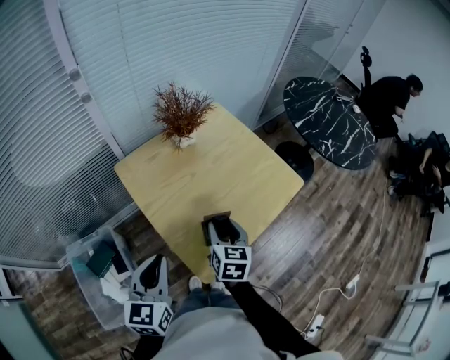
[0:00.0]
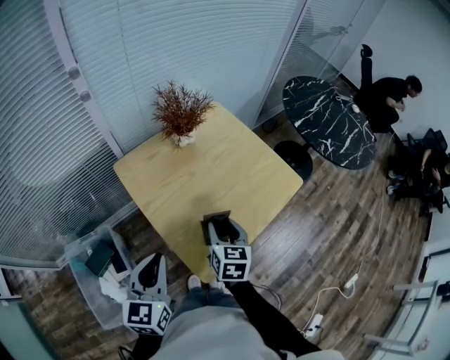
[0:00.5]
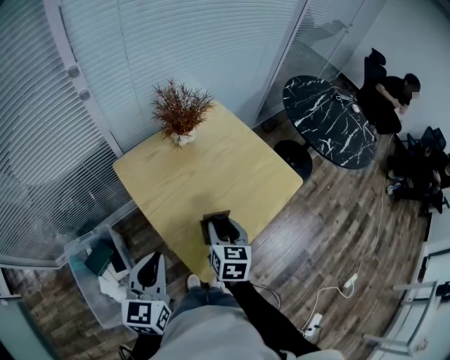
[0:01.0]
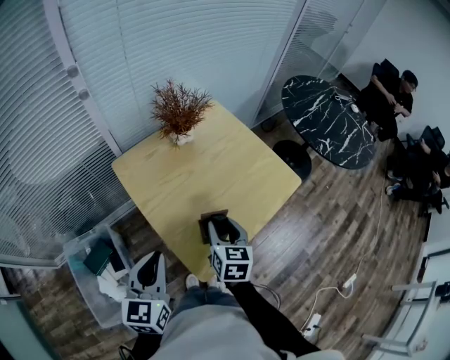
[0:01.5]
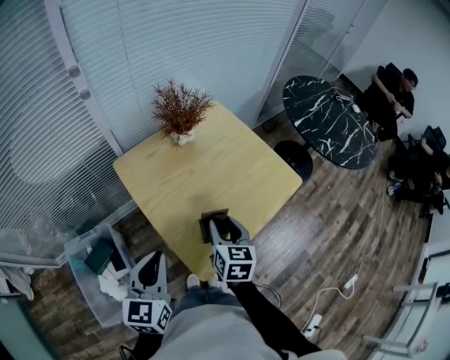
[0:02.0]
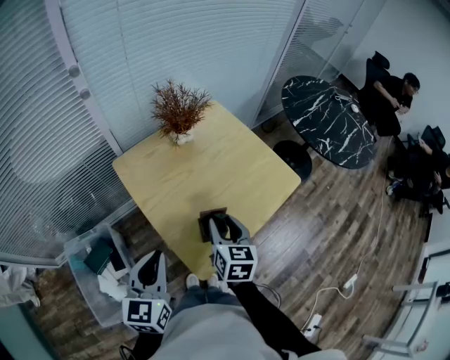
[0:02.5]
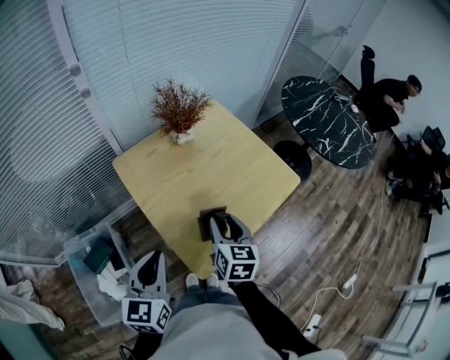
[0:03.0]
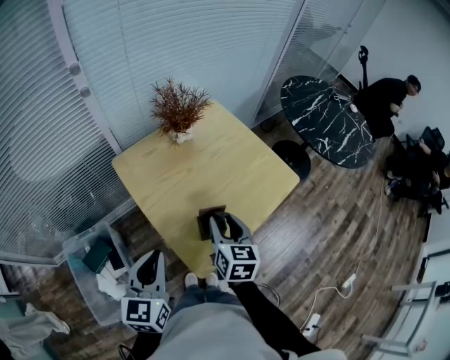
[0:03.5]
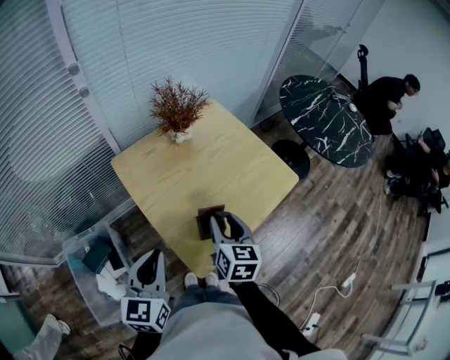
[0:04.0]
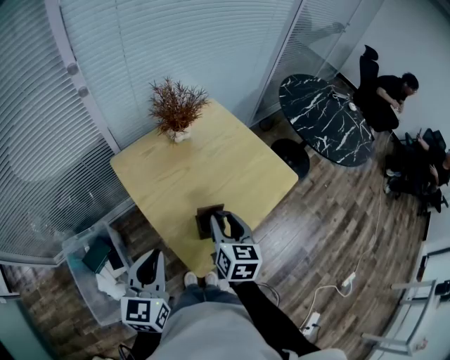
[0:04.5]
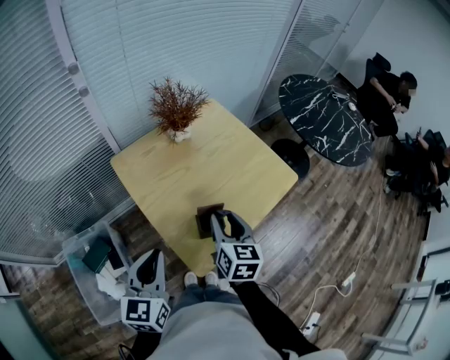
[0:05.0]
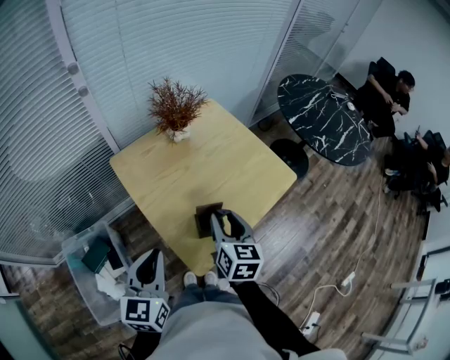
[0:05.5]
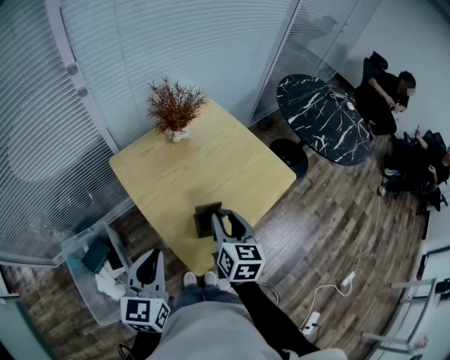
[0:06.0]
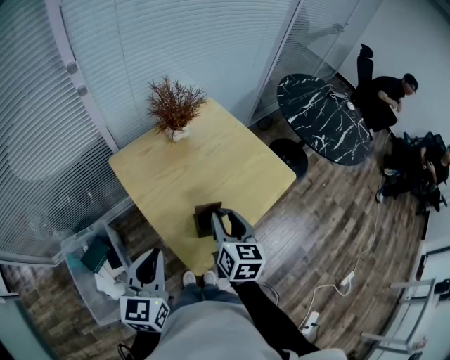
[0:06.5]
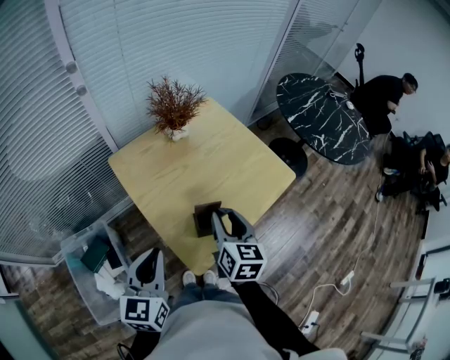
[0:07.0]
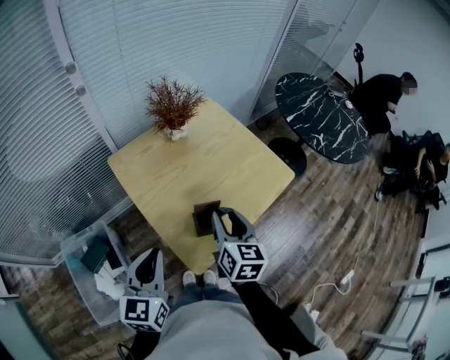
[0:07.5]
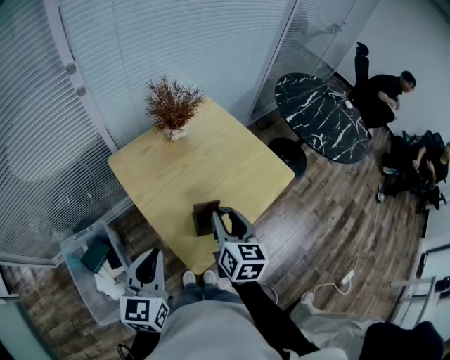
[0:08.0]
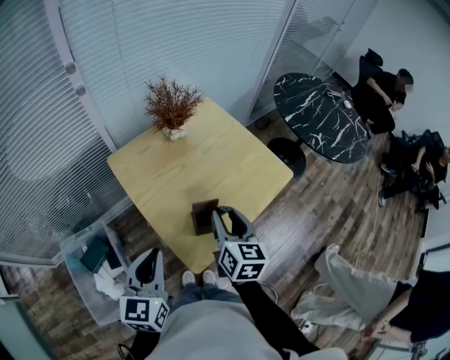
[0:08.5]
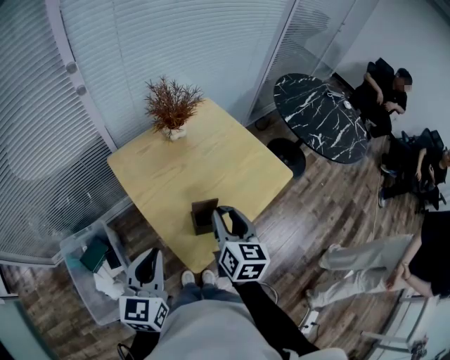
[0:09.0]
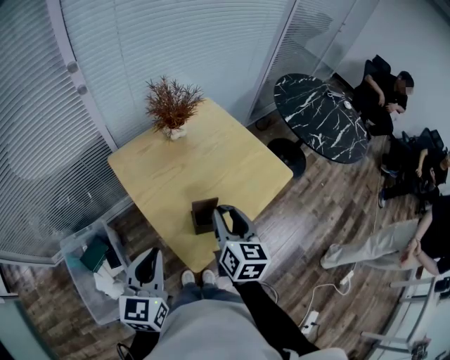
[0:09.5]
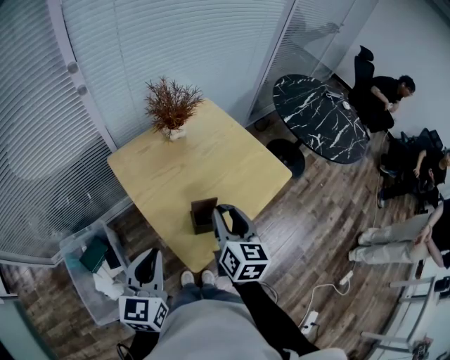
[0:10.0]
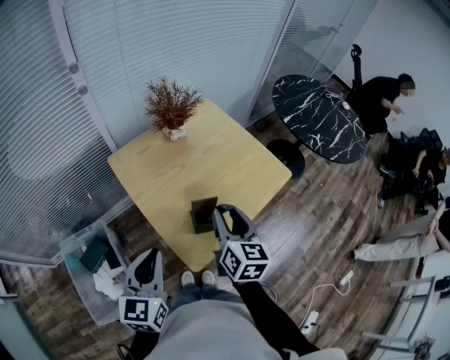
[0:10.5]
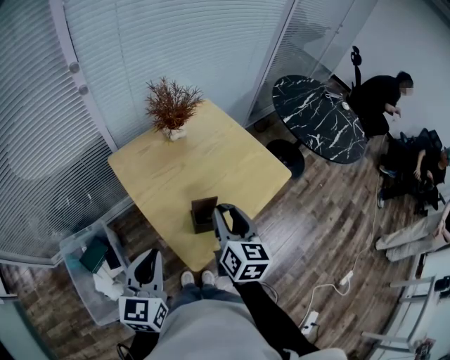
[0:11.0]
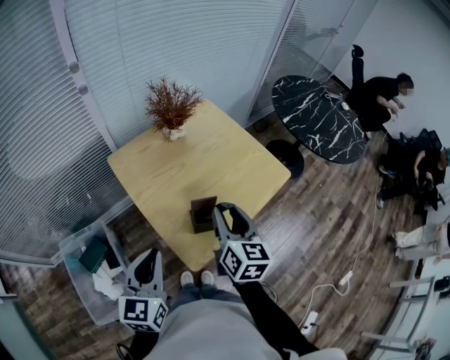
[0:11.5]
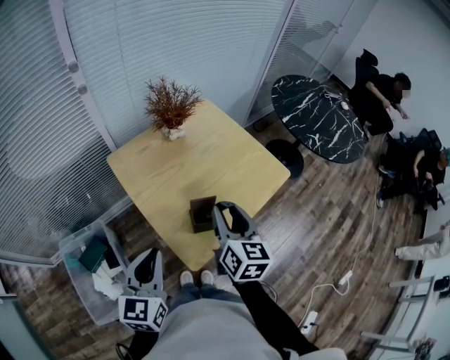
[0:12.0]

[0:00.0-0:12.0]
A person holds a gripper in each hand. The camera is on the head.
0:00.0 to 0:04.0: The grippers stay close to where they were, moving slightly.
0:04.0 to 0:06.0: The grippers move only a little.
0:06.0 to 0:08.0: The two grippers keep their place.
0:08.0 to 0:12.0: The grippers stay close to where they were, moving slightly.

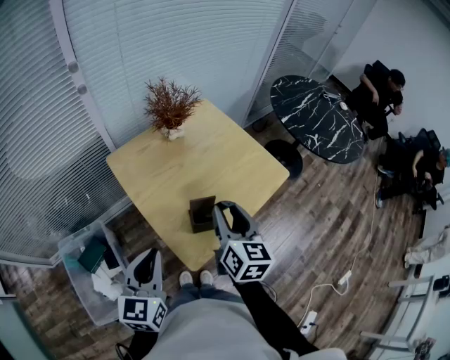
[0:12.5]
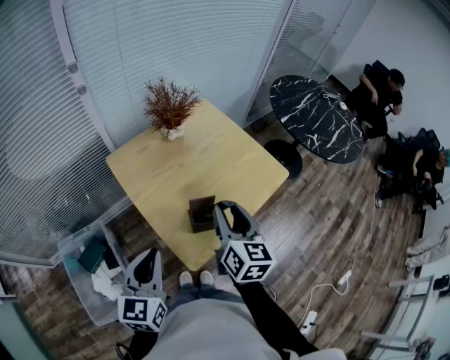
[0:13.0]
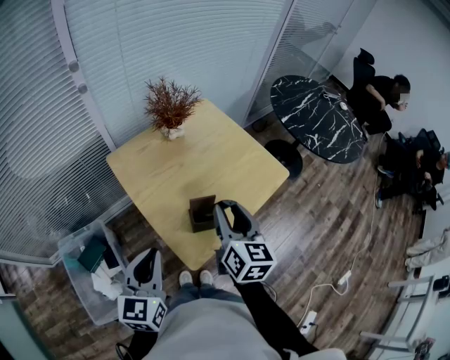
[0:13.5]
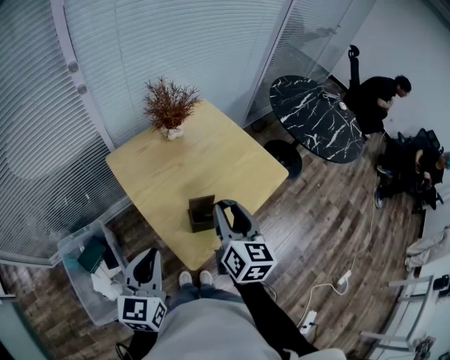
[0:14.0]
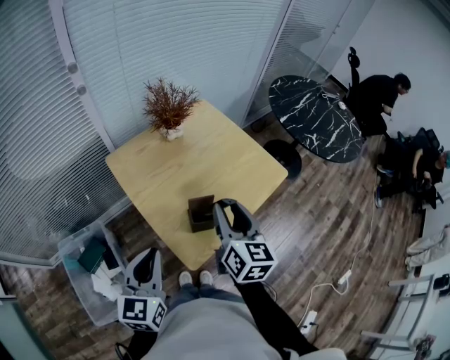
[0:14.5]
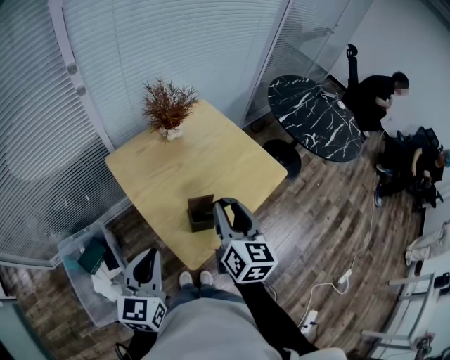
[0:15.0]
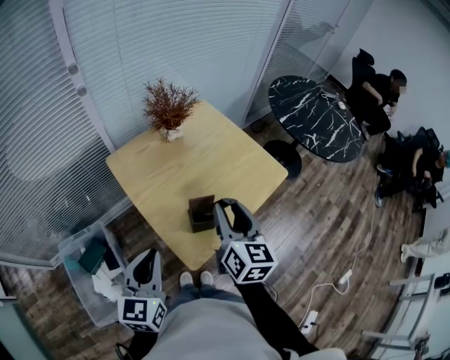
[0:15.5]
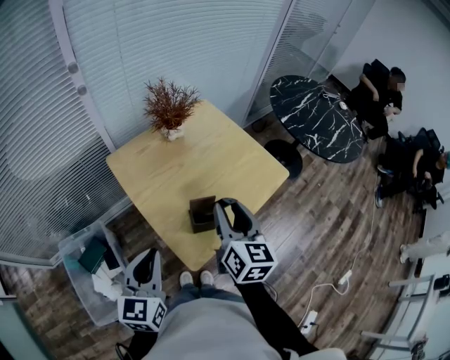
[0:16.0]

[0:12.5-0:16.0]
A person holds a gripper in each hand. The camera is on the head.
0:12.5 to 0:14.5: There are only small adjustments of the grippers.
0:14.5 to 0:16.0: Both grippers stay put.

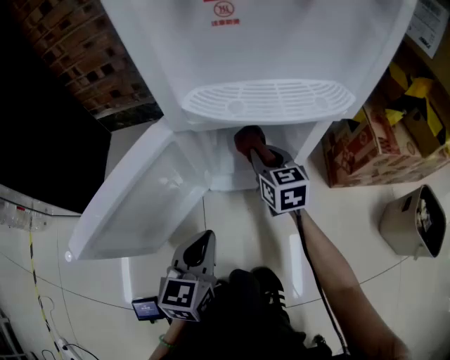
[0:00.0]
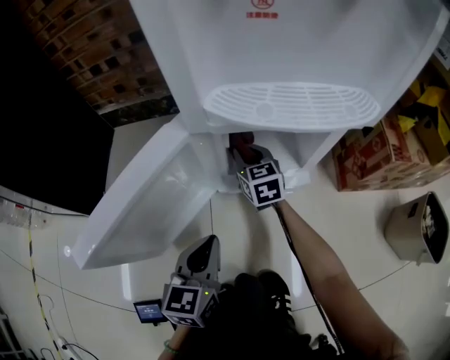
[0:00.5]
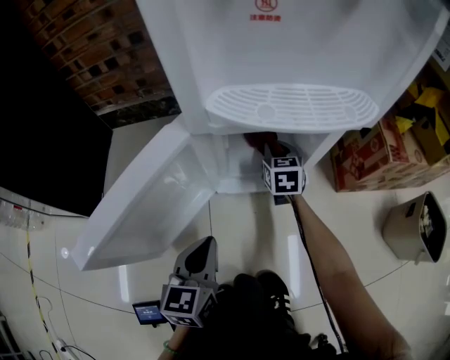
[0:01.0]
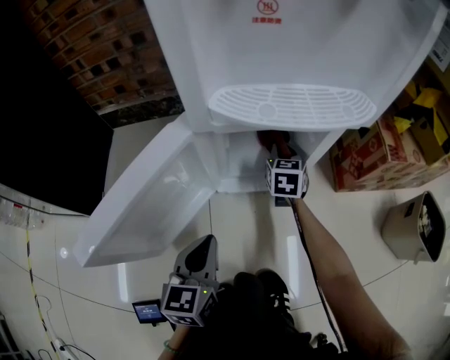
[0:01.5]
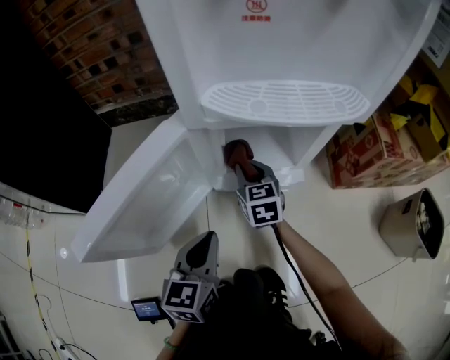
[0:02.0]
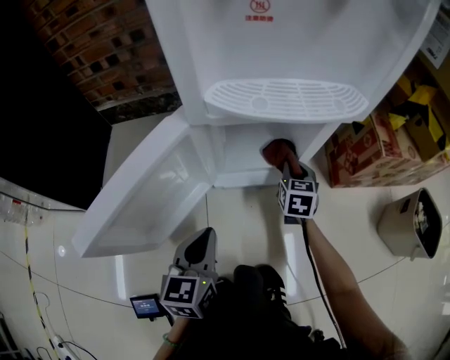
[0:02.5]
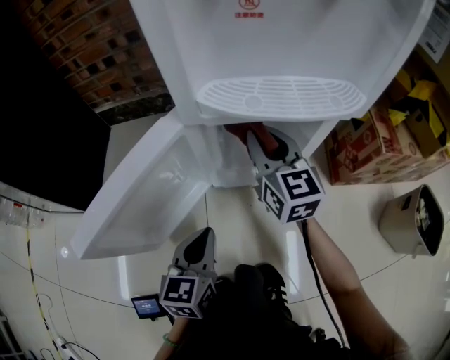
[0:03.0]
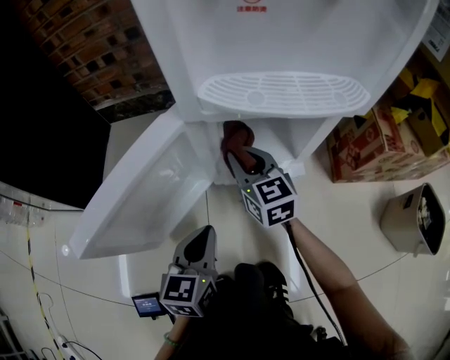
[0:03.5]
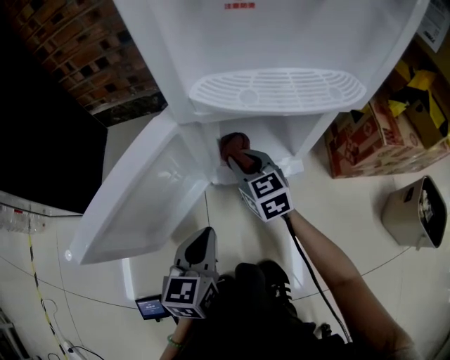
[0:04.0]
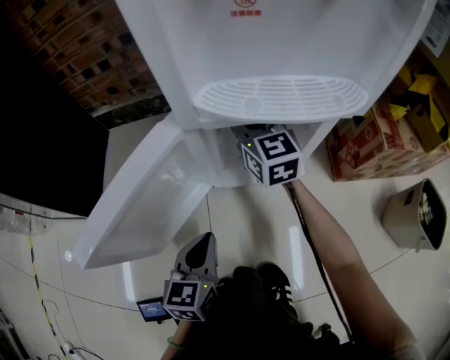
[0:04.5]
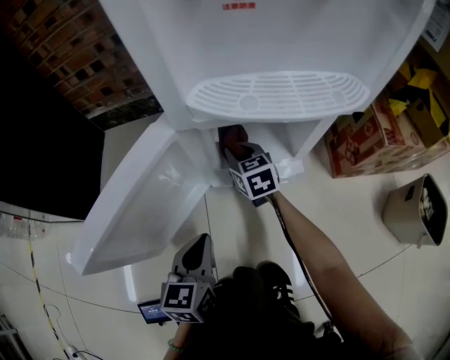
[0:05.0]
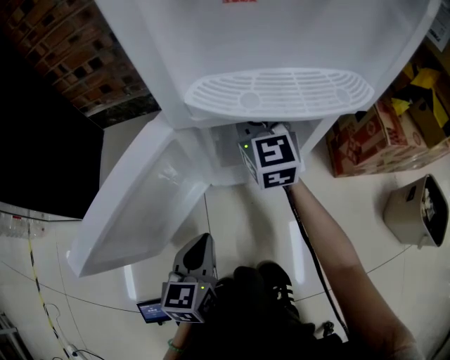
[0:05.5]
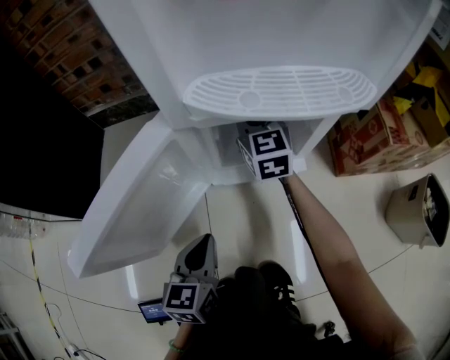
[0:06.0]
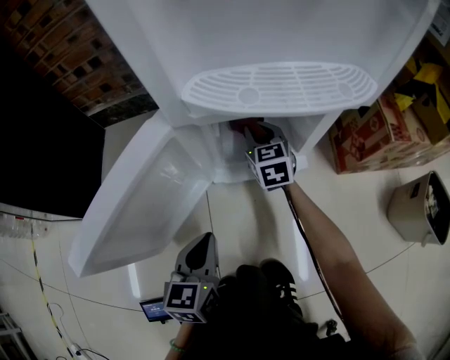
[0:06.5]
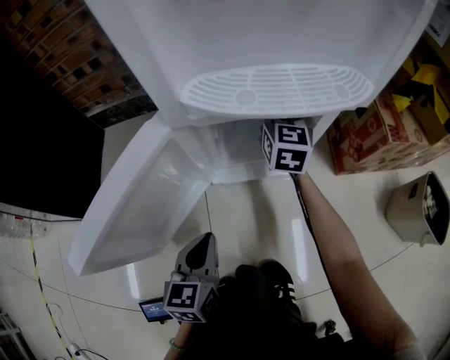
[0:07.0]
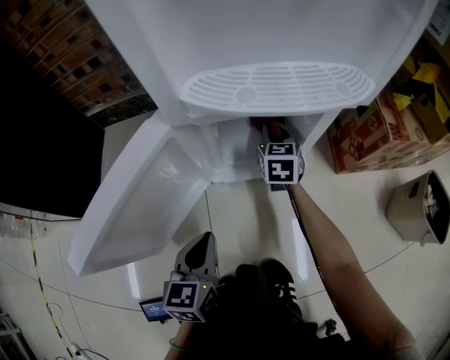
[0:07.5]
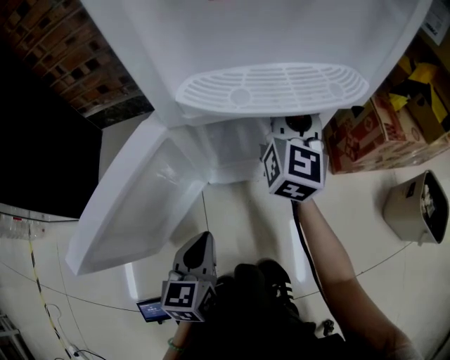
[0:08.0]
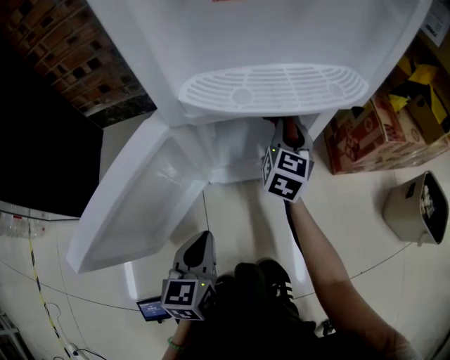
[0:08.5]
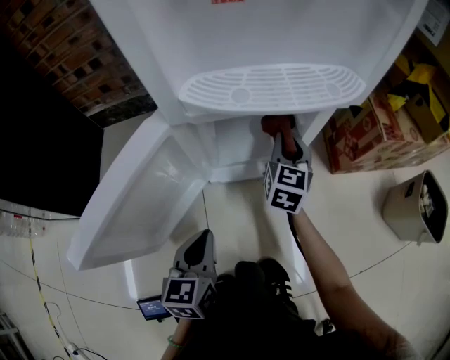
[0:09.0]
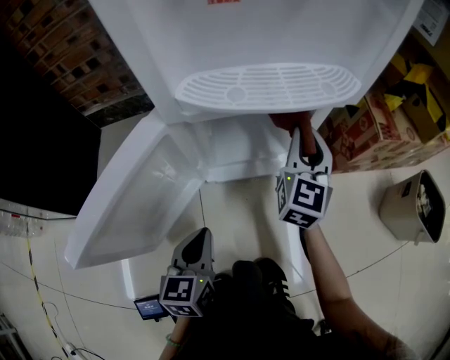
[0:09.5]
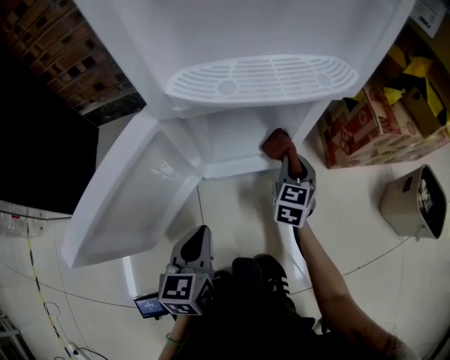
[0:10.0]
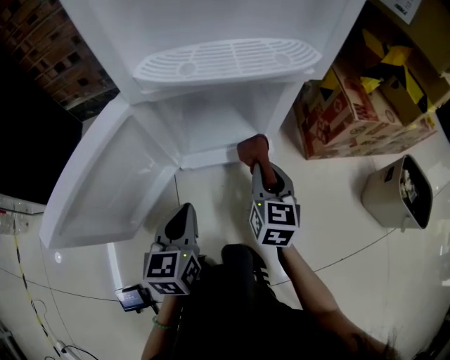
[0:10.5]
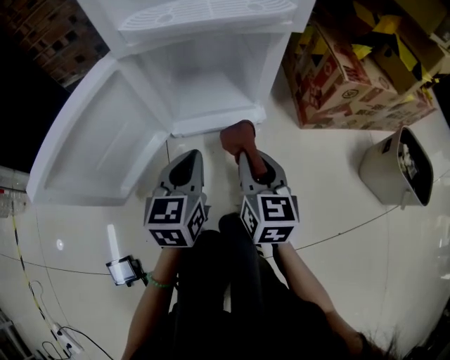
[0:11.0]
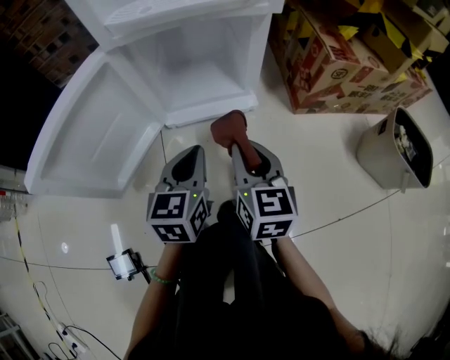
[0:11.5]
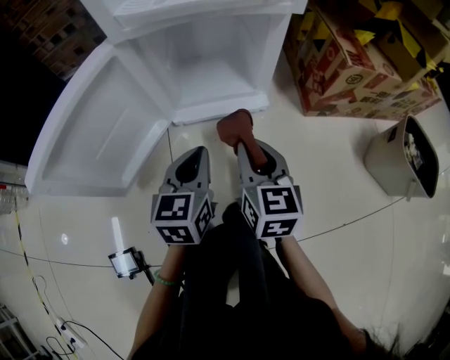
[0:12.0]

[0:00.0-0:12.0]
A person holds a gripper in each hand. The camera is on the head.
0:00.0 to 0:02.0: The right gripper goes left and right, about 15 cm each way, reversing 2 times.
0:02.0 to 0:04.0: The right gripper reaches approximately 15 cm upward, then returns.
0:04.0 to 0:06.0: The right gripper moves up and down over some 20 cm, changing direction 3 times.
0:06.0 to 0:08.0: The right gripper goes up and down, roughly 20 cm each way, reversing 3 times, and turns by roughly 30 degrees.
0:08.0 to 0:10.0: The right gripper goes up and down, approximately 20 cm each way, reversing 2 times, and swivels roughly 30 degrees.
0:10.0 to 0:12.0: The right gripper heads backward, covering about 15 cm, and turns by approximately 20 degrees, while the left gripper moves to the right, approximately 10 cm.
